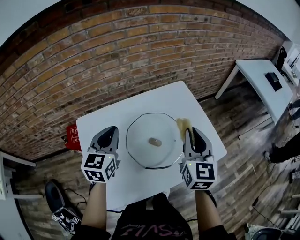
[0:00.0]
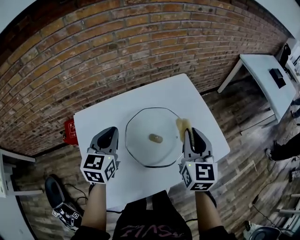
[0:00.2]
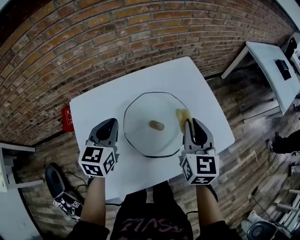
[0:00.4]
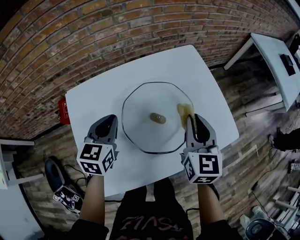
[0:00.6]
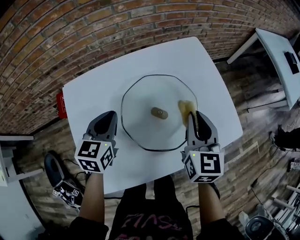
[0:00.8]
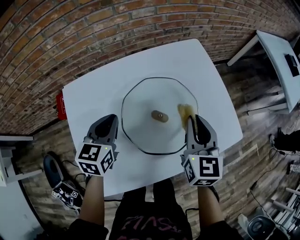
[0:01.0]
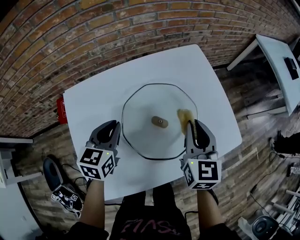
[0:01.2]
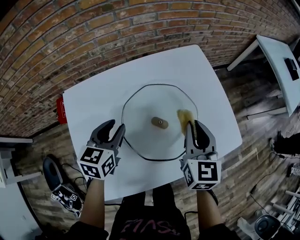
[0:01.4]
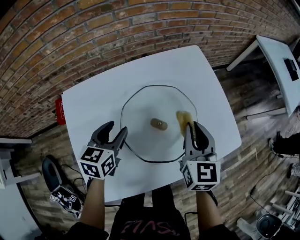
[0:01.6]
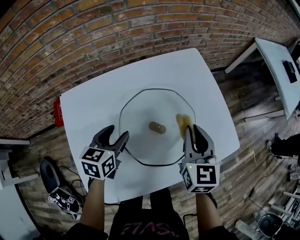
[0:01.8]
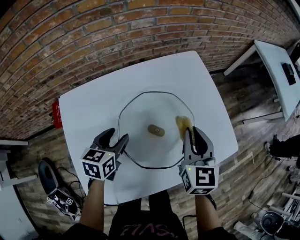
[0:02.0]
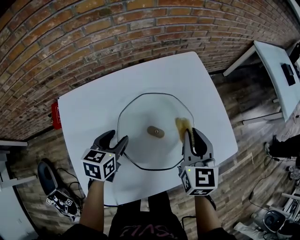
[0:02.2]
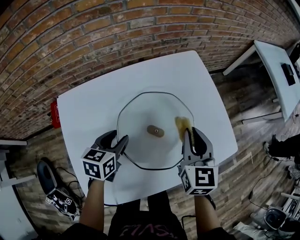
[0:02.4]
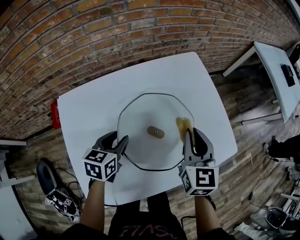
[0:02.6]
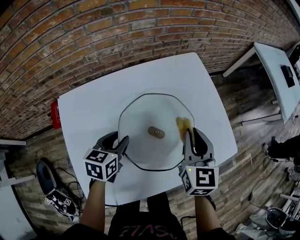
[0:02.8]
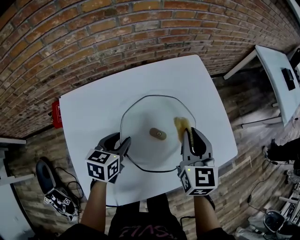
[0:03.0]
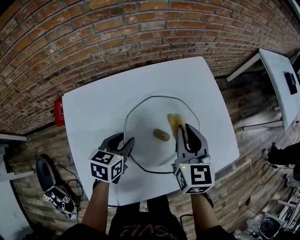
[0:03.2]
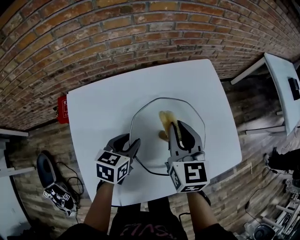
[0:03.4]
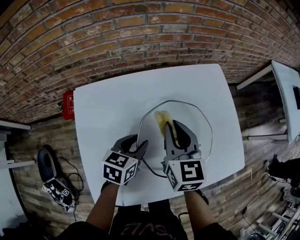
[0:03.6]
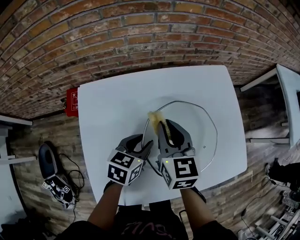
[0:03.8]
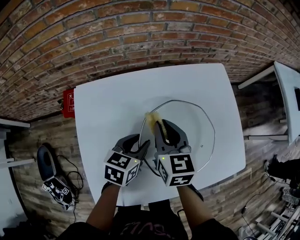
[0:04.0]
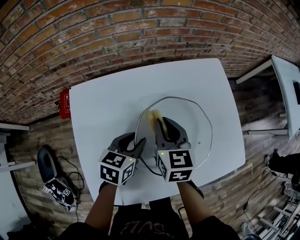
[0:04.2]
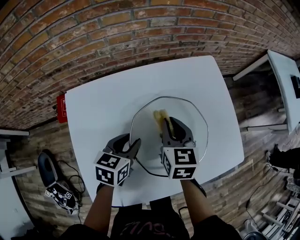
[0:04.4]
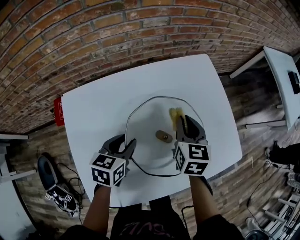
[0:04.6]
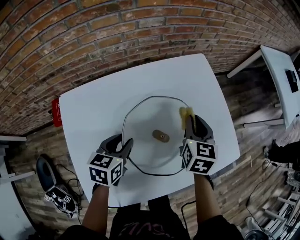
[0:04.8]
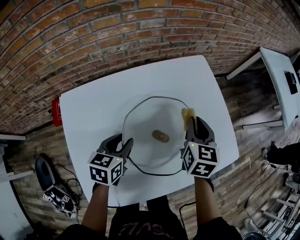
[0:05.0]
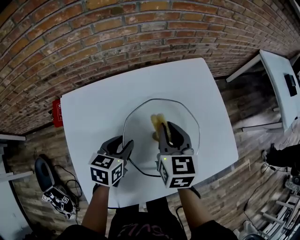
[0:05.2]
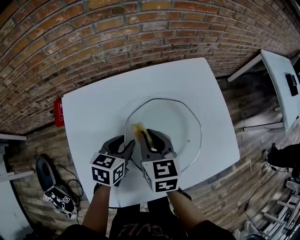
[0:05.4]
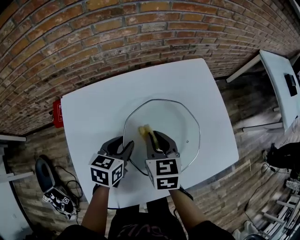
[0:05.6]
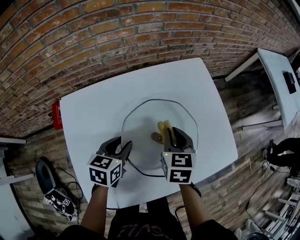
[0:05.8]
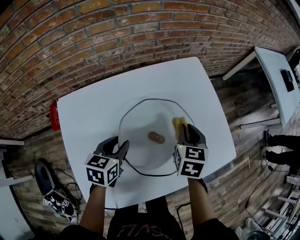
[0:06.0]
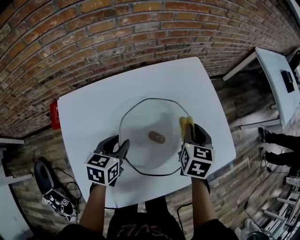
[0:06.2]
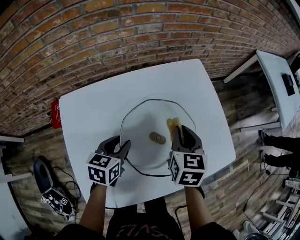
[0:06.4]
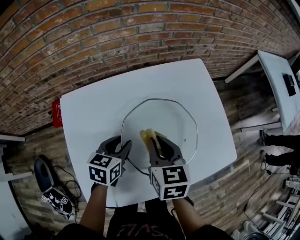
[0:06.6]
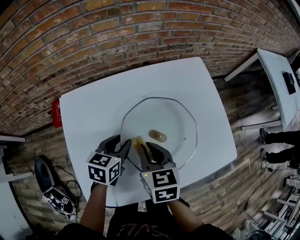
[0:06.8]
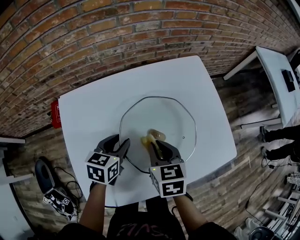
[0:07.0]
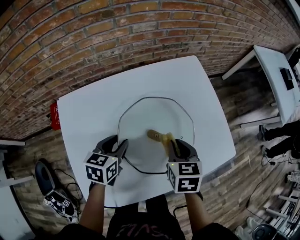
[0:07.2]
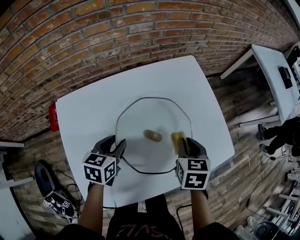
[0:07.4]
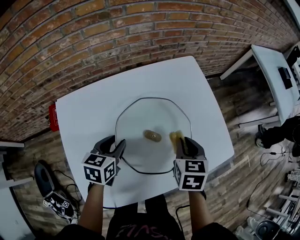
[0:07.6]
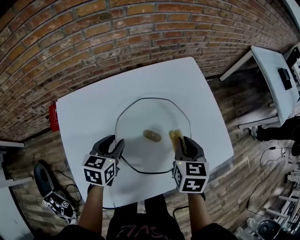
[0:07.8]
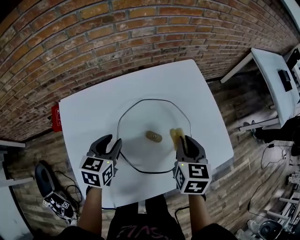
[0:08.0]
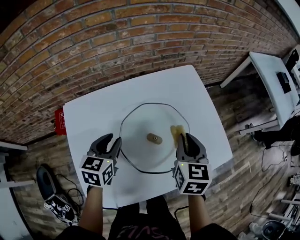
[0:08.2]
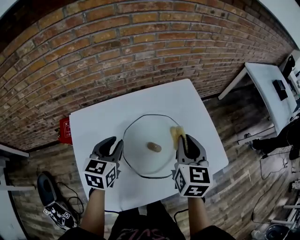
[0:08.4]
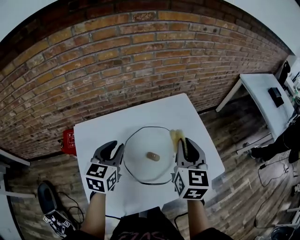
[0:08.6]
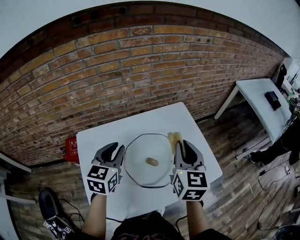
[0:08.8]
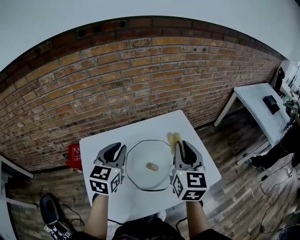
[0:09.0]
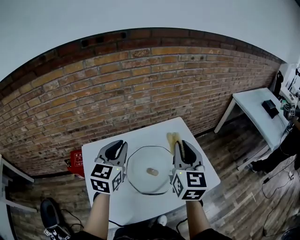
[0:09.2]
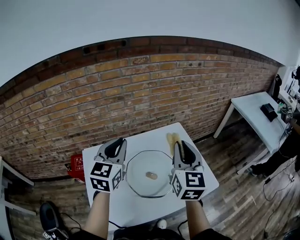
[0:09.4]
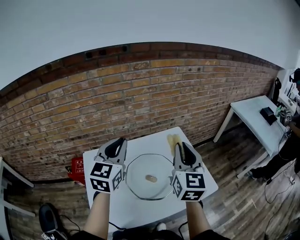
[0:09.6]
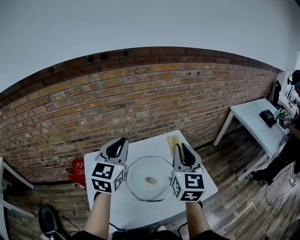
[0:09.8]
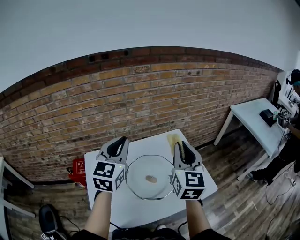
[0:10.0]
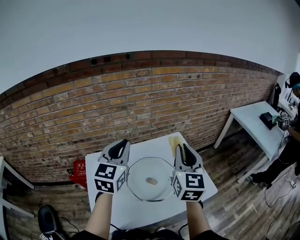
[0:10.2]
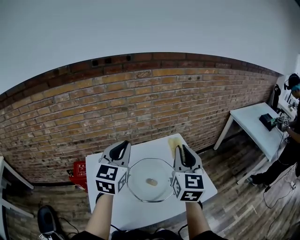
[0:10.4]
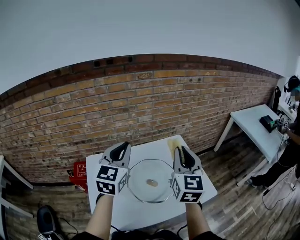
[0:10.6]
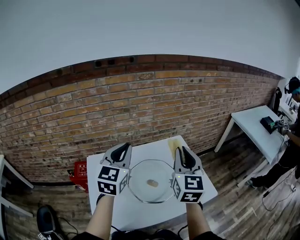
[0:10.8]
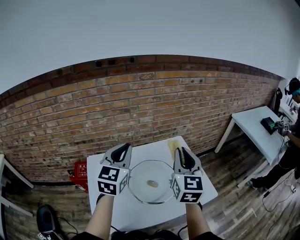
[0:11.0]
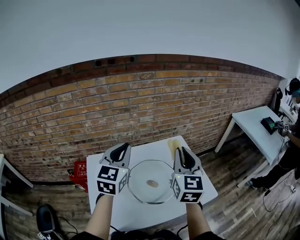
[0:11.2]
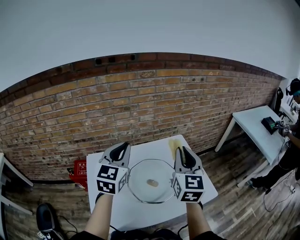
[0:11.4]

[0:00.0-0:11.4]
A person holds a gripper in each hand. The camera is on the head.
0:00.0 to 0:01.4: Both grippers move downward, roughly 15 cm. The left gripper opens up.
0:01.4 to 0:02.8: The left gripper is displaced downward by about 5 cm.
0:02.8 to 0:04.2: The right gripper travels to the left by roughly 15 cm.
0:04.2 to 0:05.6: The right gripper moves about 15 cm to the right and comes back.
0:05.6 to 0:07.2: The right gripper goes left and right, roughly 15 cm each way, reversing 2 times.
0:07.2 to 0:08.6: The two grippers go some 20 cm upward. The right gripper swivels approximately 30 degrees. Meanwhile the left gripper rotates approximately 20 degrees.
0:08.6 to 0:10.0: Both grippers move upward, roughly 20 cm. The left gripper rotates approximately 30 degrees.
0:10.0 to 0:11.4: The grippers make only small movements.

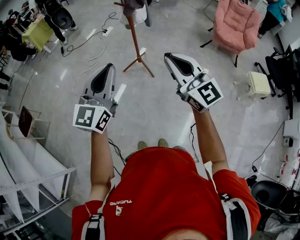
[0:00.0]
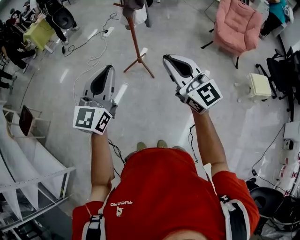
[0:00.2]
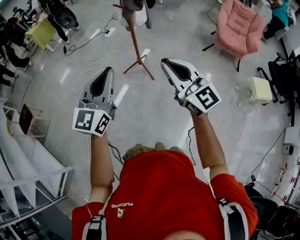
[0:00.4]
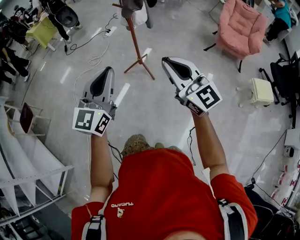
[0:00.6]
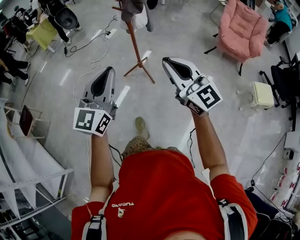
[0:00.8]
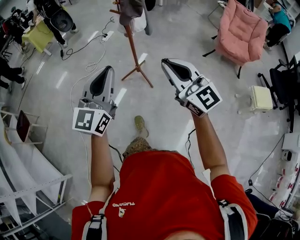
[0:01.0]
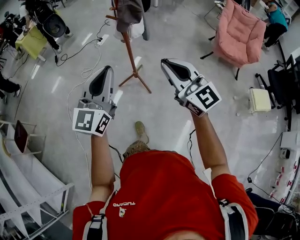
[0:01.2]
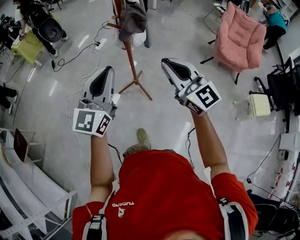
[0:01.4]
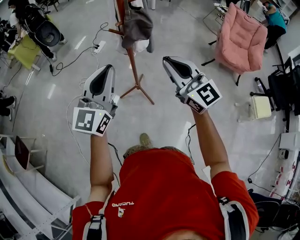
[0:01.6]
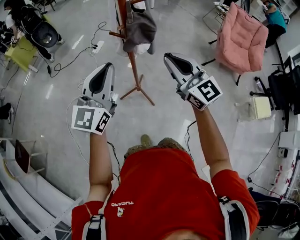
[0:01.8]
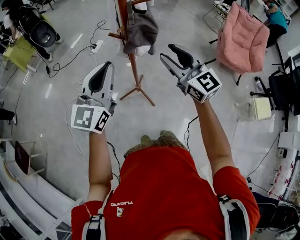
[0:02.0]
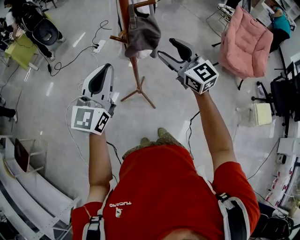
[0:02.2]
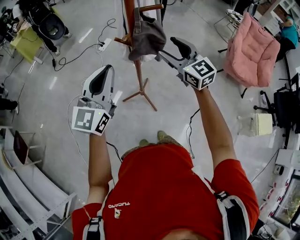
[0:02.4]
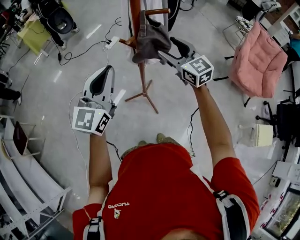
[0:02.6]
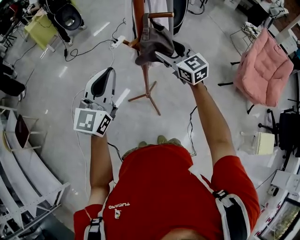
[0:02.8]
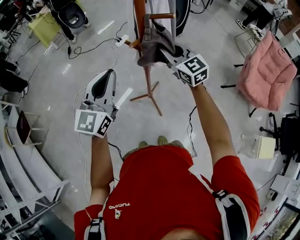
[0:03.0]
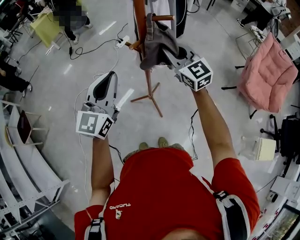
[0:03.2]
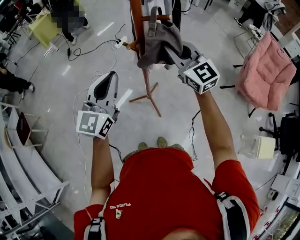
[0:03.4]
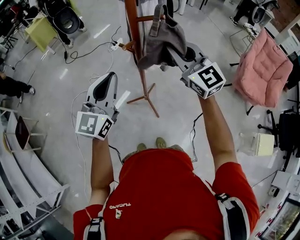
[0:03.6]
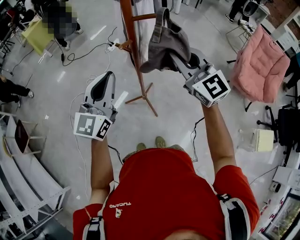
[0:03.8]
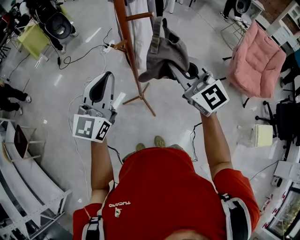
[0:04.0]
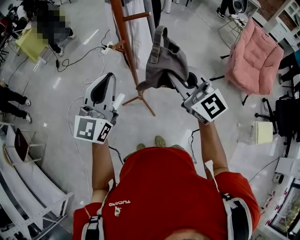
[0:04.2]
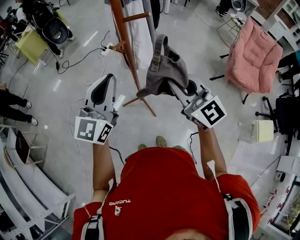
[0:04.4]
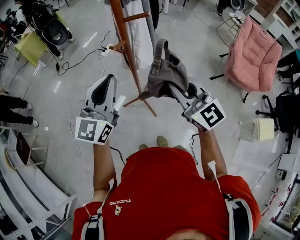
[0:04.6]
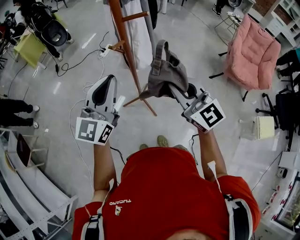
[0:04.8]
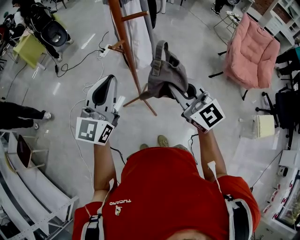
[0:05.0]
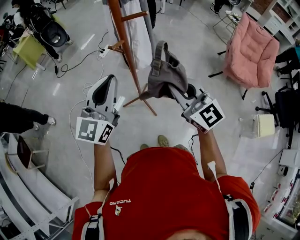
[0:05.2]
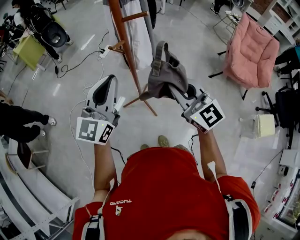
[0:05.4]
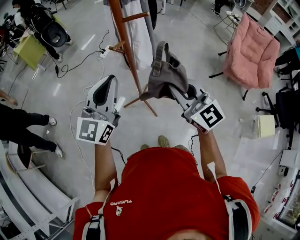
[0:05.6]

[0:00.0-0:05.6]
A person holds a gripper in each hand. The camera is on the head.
0:00.0 to 0:01.4: The grippers both shift forward by approximately 25 cm.
0:01.4 to 0:02.8: The right gripper travels forward by roughly 35 cm, and opens its fingers; the left gripper travels forward by roughly 20 cm.
0:02.8 to 0:04.2: The left gripper changes place by some 5 cm; the right gripper moves backward and upward, some 20 cm, and closes.
0:04.2 to 0:05.6: The right gripper changes place by some 5 cm.

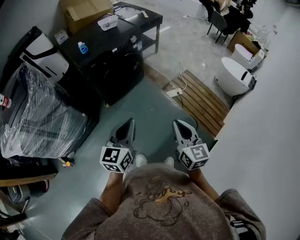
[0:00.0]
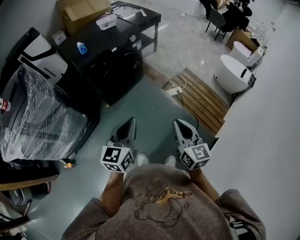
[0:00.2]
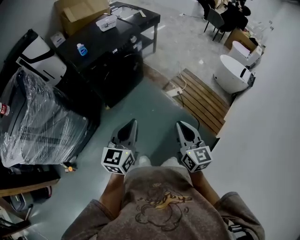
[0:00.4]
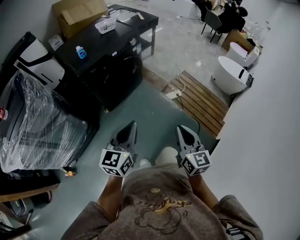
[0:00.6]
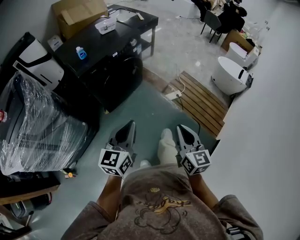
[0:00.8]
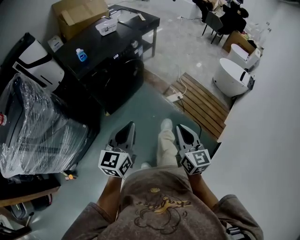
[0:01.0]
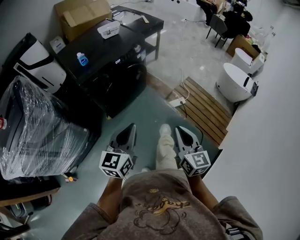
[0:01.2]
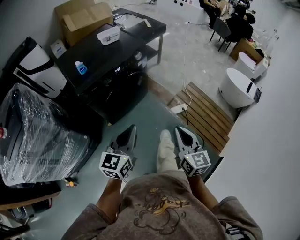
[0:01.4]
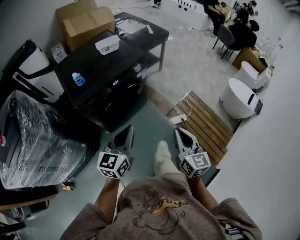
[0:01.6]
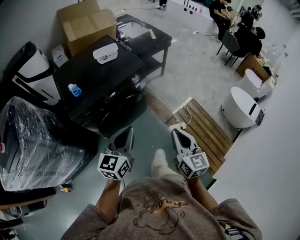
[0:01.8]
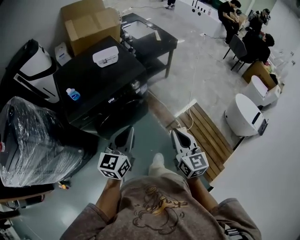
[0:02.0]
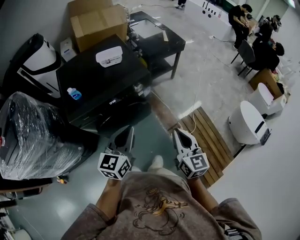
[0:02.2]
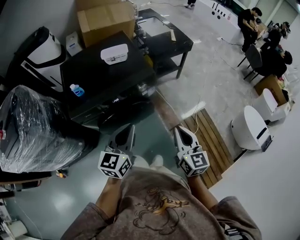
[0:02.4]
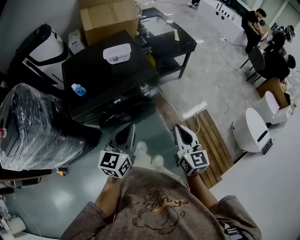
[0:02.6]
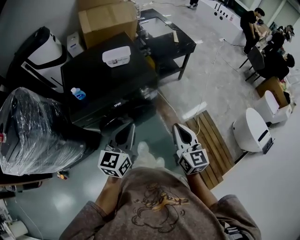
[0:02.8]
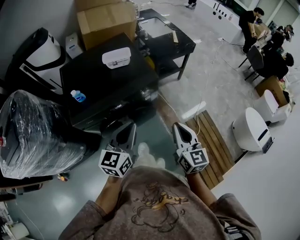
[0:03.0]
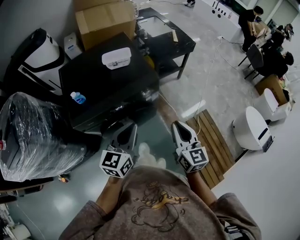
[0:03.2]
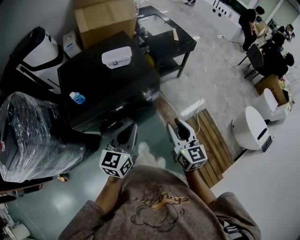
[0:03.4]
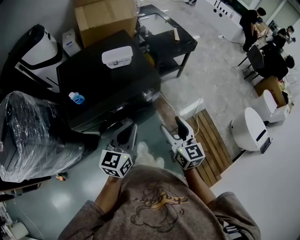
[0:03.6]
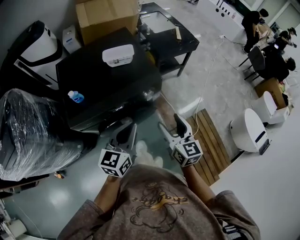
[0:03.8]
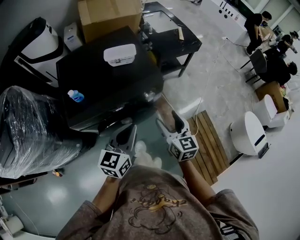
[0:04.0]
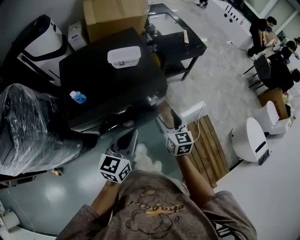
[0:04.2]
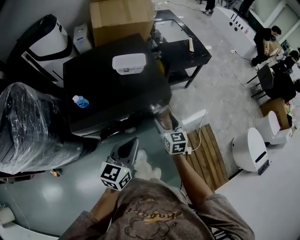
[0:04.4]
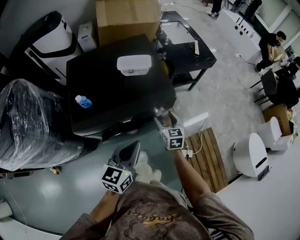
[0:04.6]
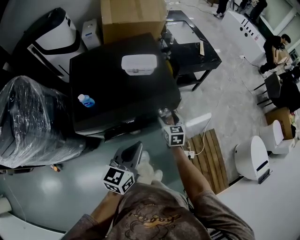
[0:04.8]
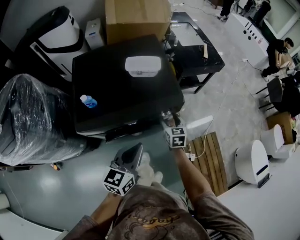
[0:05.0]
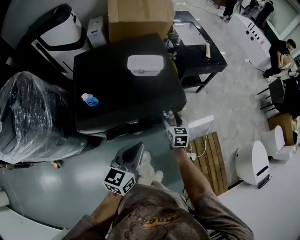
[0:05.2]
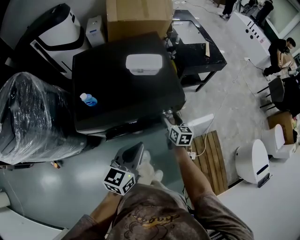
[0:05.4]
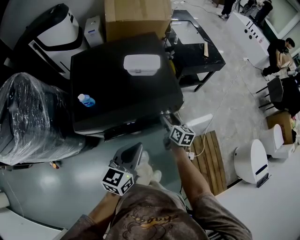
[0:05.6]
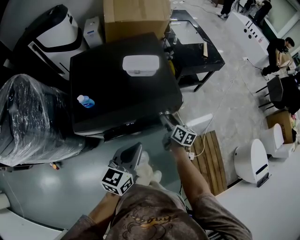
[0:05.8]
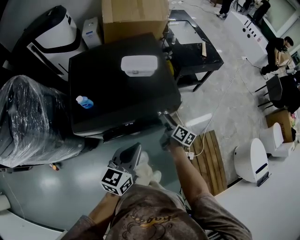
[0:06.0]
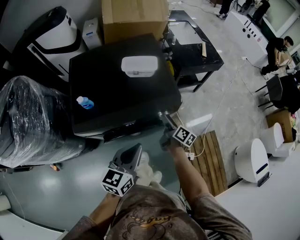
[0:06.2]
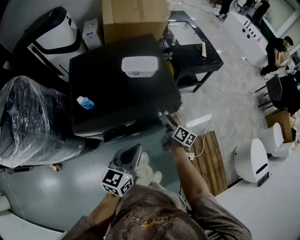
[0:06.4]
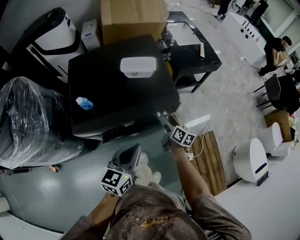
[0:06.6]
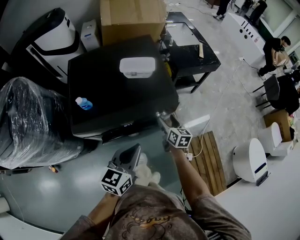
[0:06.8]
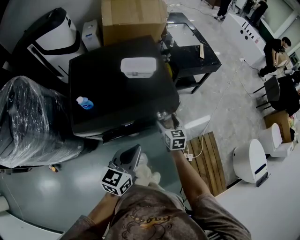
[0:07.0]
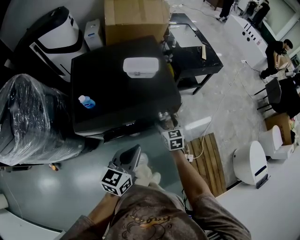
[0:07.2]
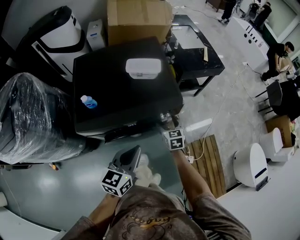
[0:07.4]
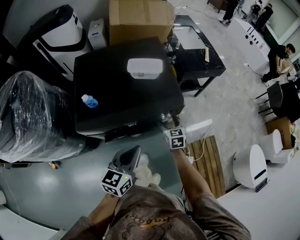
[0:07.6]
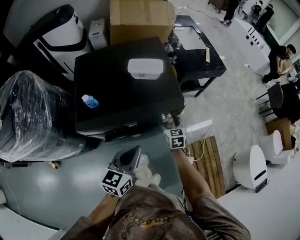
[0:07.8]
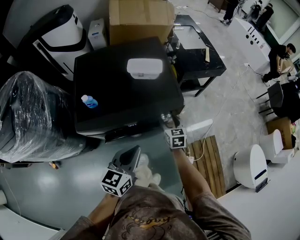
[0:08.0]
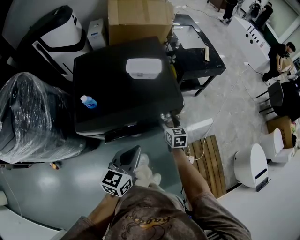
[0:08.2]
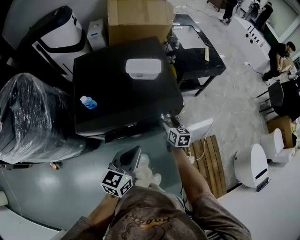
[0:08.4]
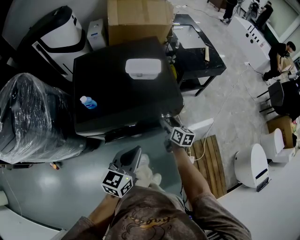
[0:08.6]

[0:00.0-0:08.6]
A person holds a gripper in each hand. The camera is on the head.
0:00.0 to 0:01.4: The grippers both shift forward by roughly 15 cm.
0:01.4 to 0:02.8: Both grippers travel together forward, some 30 cm.
0:02.8 to 0:04.4: The right gripper shifts approximately 25 cm forward, downward and to the left, and opens up; the left gripper is displaced forward by approximately 5 cm.
0:04.4 to 0:05.8: The right gripper goes approximately 10 cm downward and forward, and changes its angle by about 40 degrees.
0:05.8 to 0:07.2: The right gripper rotates around the line of its fingers by roughly 40 degrees, counterclockwise from behind.
0:07.2 to 0:08.6: The right gripper turns by some 30 degrees.
